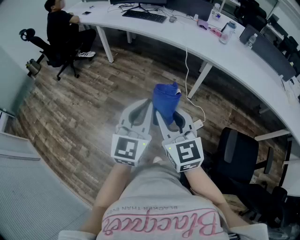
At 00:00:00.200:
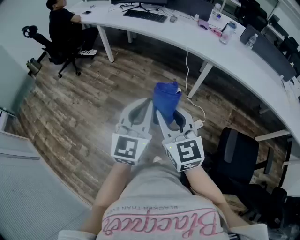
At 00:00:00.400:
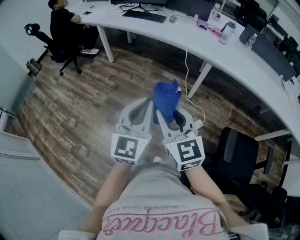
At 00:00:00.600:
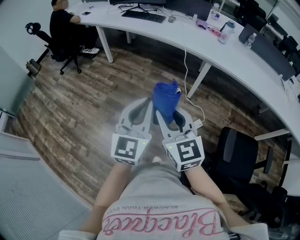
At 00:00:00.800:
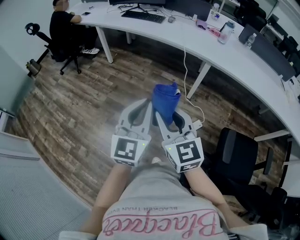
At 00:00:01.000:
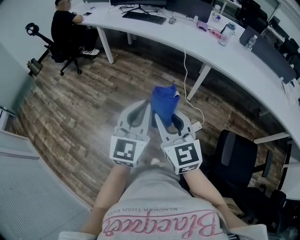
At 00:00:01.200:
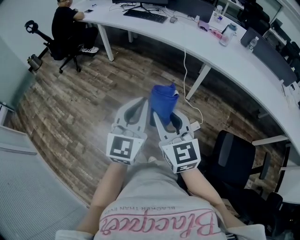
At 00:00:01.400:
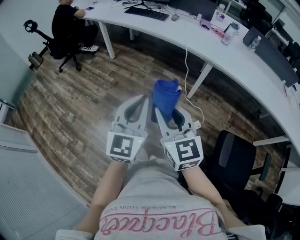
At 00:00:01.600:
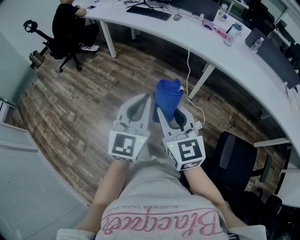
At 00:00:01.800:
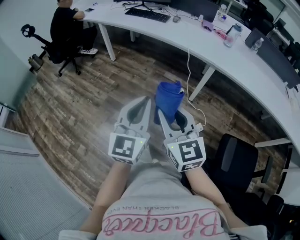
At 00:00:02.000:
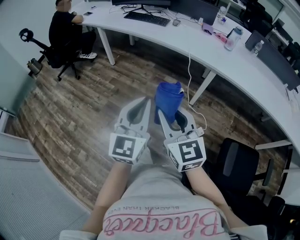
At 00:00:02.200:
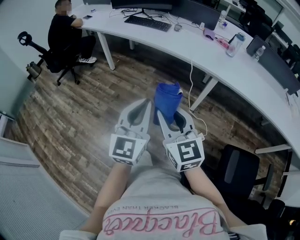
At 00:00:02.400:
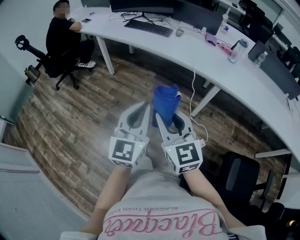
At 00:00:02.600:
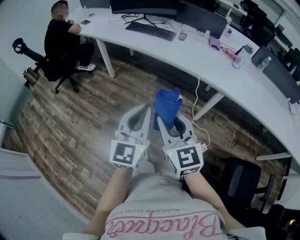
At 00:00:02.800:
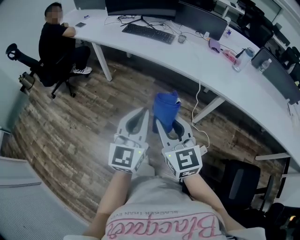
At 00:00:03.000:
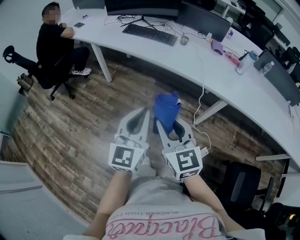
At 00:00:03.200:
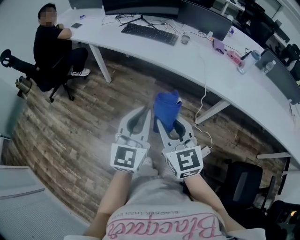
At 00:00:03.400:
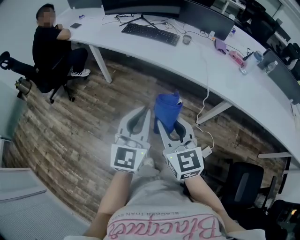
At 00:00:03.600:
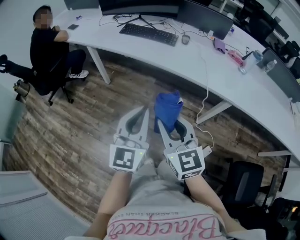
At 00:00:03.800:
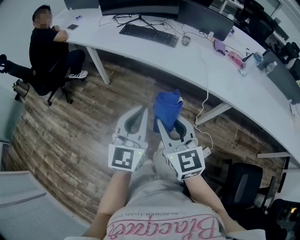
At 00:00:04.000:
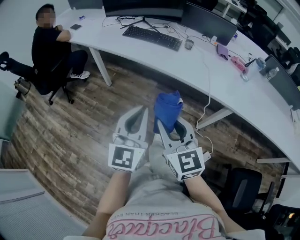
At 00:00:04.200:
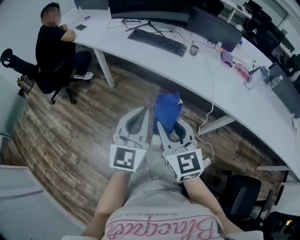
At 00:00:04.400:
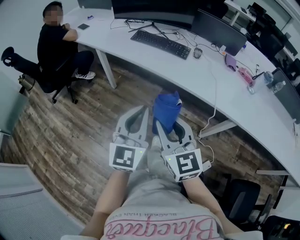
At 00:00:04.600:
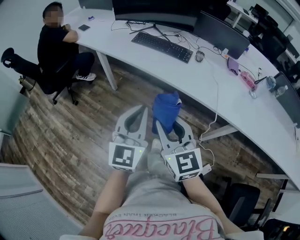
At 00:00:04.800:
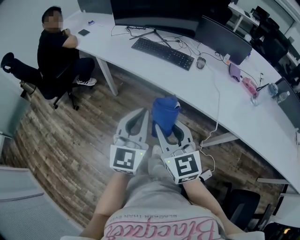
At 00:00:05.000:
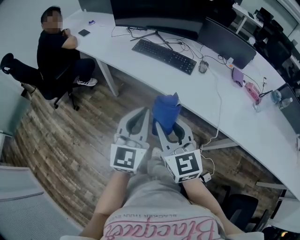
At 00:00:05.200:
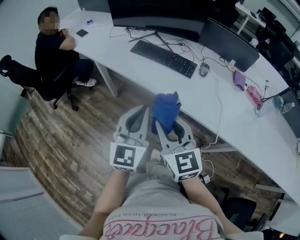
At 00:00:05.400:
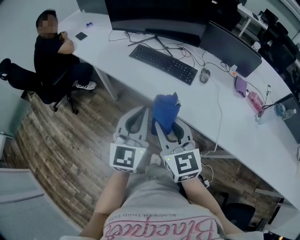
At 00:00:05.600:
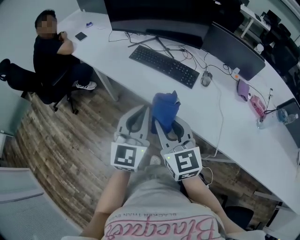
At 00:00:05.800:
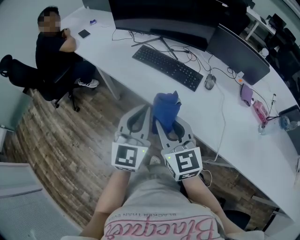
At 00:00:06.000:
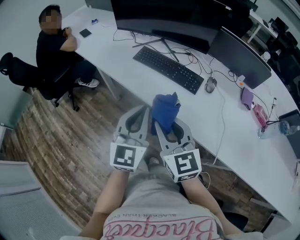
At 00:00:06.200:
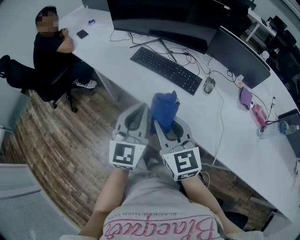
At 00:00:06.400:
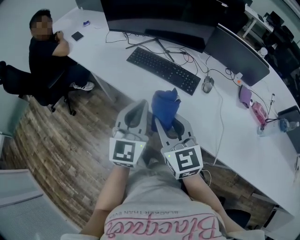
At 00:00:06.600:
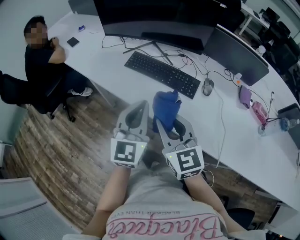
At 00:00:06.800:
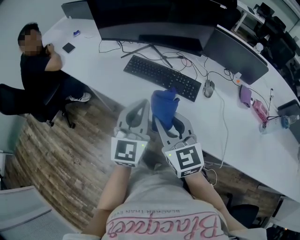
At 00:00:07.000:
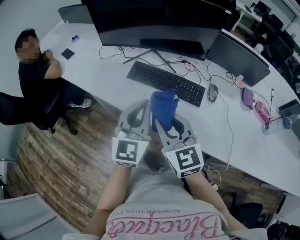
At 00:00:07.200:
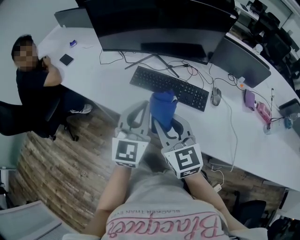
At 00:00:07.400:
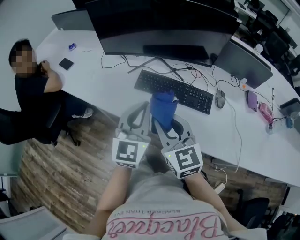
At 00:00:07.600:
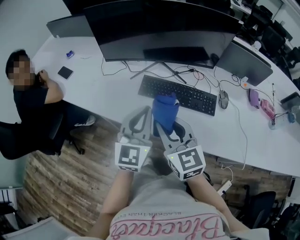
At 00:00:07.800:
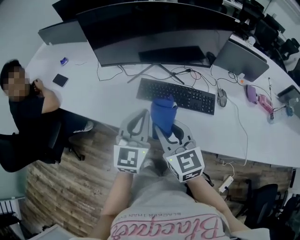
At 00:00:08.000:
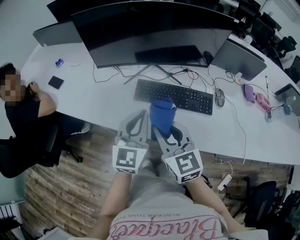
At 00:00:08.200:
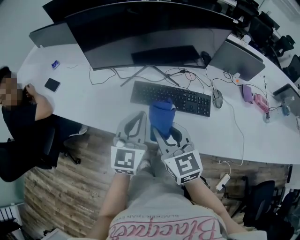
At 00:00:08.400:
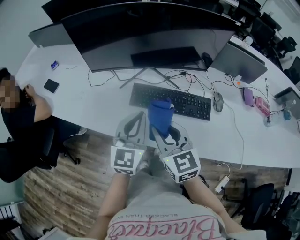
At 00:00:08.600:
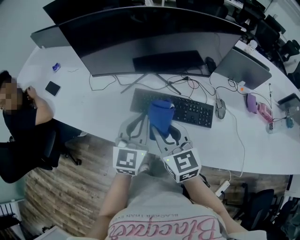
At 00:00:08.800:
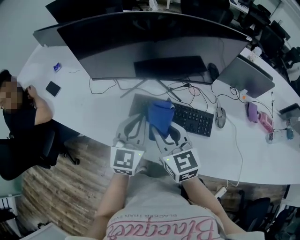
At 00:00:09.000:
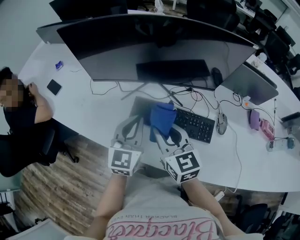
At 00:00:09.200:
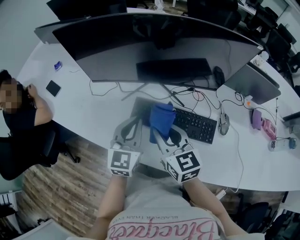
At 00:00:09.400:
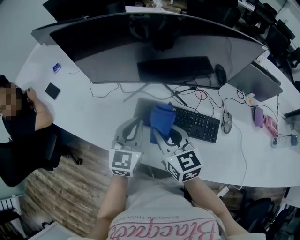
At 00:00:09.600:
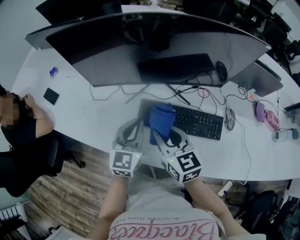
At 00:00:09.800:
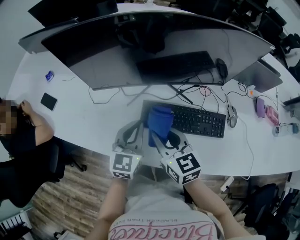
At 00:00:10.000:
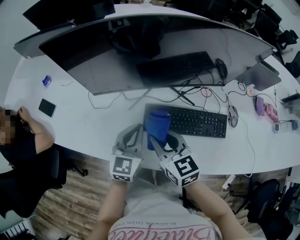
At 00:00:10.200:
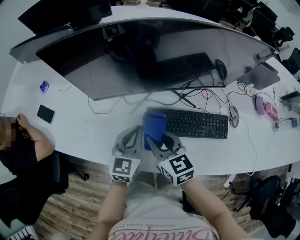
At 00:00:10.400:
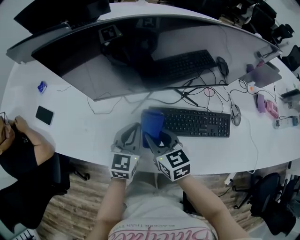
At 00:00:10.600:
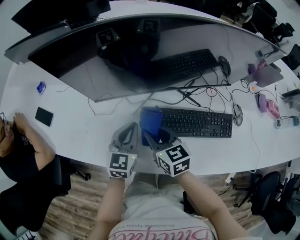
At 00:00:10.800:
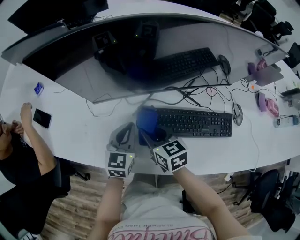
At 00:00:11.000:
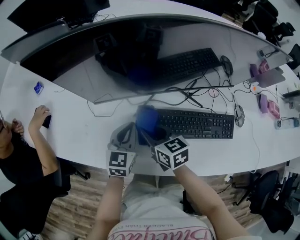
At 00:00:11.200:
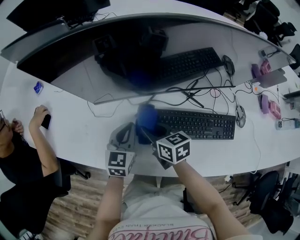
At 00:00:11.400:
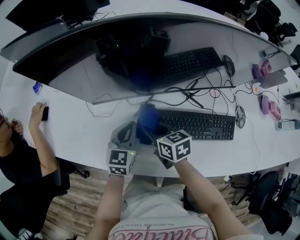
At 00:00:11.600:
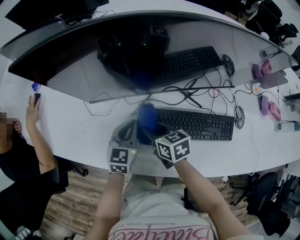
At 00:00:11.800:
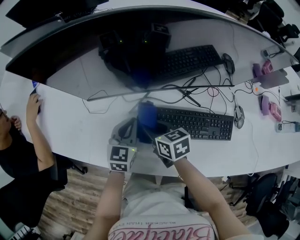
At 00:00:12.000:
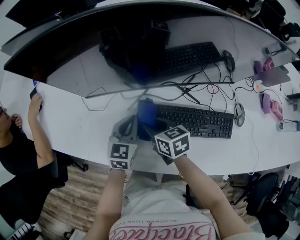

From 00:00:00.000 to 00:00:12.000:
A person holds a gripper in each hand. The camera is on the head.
From 00:00:00.000 to 00:00:01.600: The grippers move only a little.
From 00:00:01.600 to 00:00:03.000: Both grippers travel together forward, roughly 30 cm.
From 00:00:03.000 to 00:00:04.400: Both grippers travel together forward, roughly 15 cm.
From 00:00:04.400 to 00:00:06.000: The grippers both shift forward by approximately 25 cm.
From 00:00:06.000 to 00:00:07.600: Both grippers travel together forward and to the left, some 25 cm.
From 00:00:07.600 to 00:00:09.000: The grippers both shift forward by approximately 15 cm.
From 00:00:09.000 to 00:00:10.400: Both grippers move to the left, downward and forward, approximately 20 cm.
From 00:00:10.400 to 00:00:12.000: The grippers both shift downward by some 5 cm.

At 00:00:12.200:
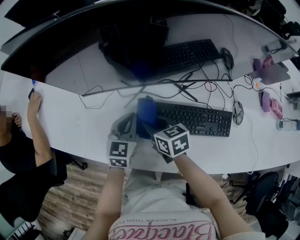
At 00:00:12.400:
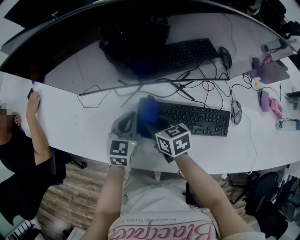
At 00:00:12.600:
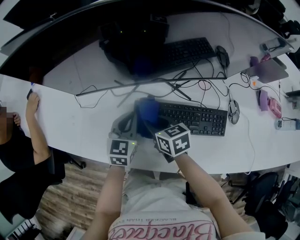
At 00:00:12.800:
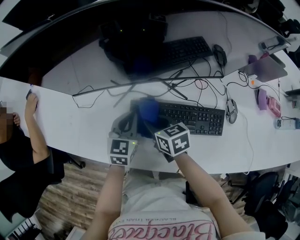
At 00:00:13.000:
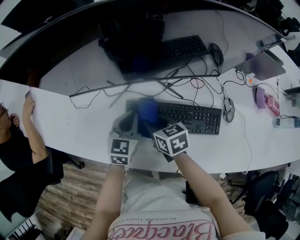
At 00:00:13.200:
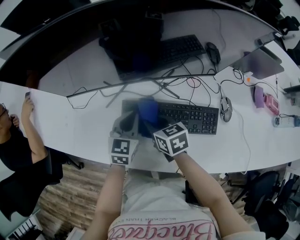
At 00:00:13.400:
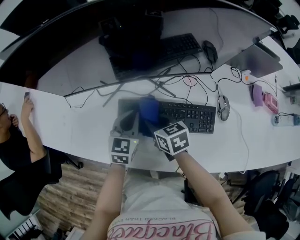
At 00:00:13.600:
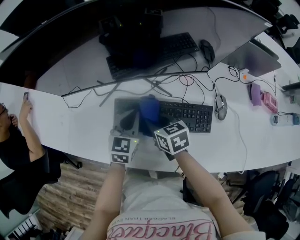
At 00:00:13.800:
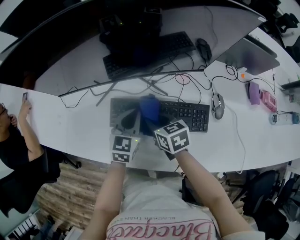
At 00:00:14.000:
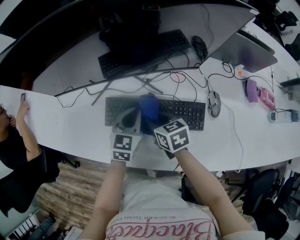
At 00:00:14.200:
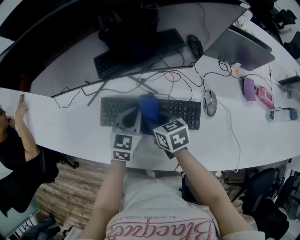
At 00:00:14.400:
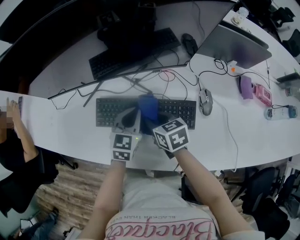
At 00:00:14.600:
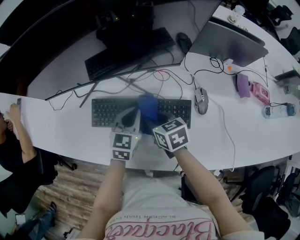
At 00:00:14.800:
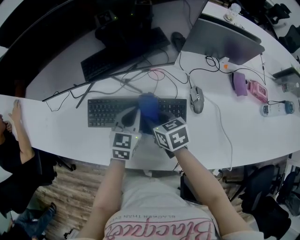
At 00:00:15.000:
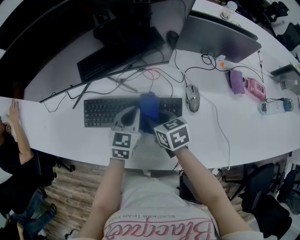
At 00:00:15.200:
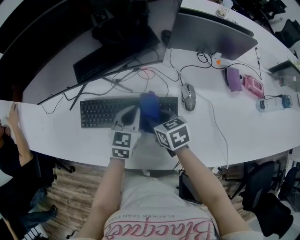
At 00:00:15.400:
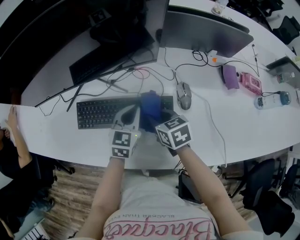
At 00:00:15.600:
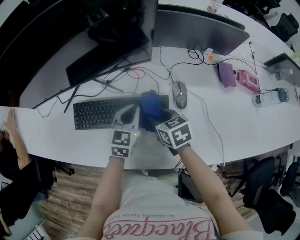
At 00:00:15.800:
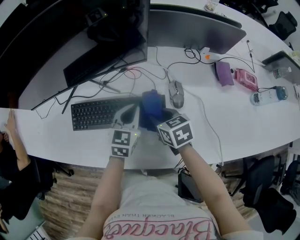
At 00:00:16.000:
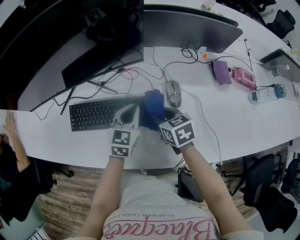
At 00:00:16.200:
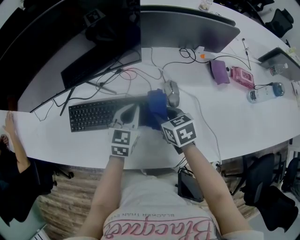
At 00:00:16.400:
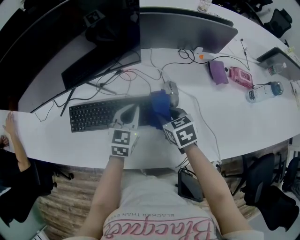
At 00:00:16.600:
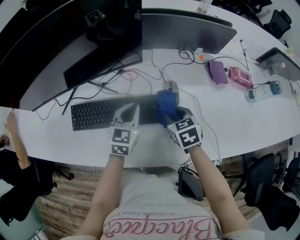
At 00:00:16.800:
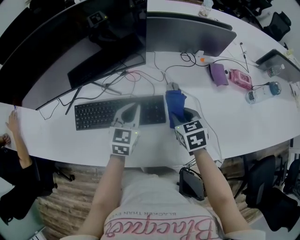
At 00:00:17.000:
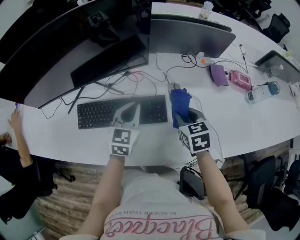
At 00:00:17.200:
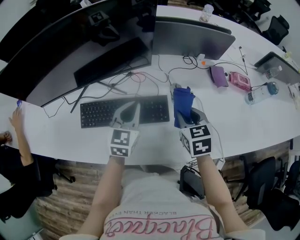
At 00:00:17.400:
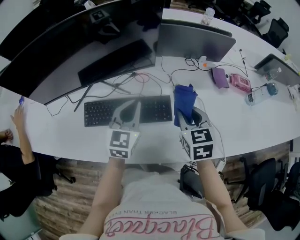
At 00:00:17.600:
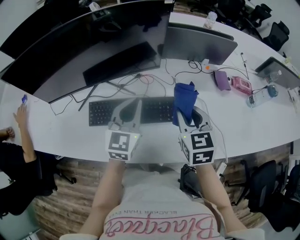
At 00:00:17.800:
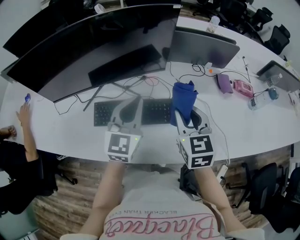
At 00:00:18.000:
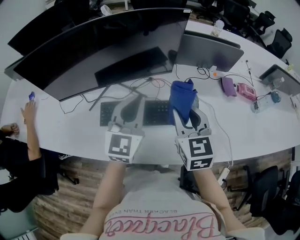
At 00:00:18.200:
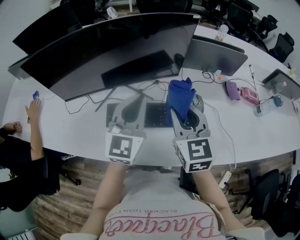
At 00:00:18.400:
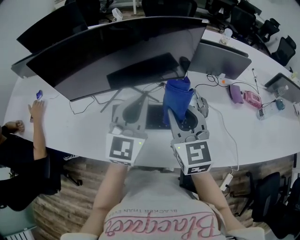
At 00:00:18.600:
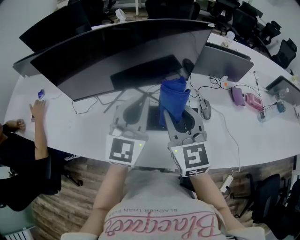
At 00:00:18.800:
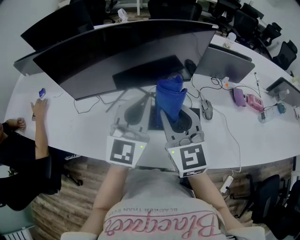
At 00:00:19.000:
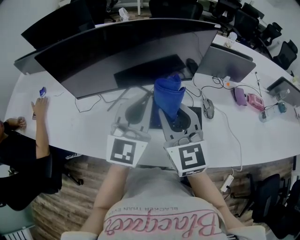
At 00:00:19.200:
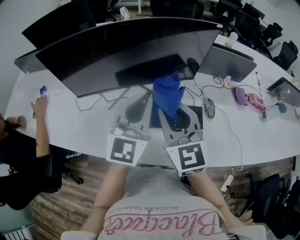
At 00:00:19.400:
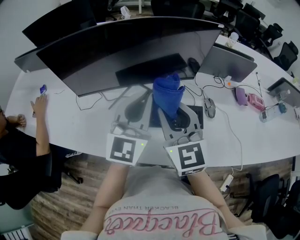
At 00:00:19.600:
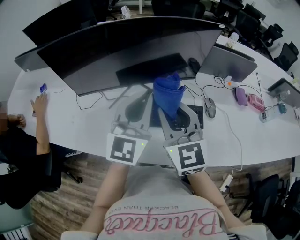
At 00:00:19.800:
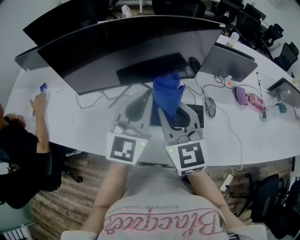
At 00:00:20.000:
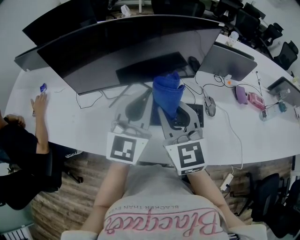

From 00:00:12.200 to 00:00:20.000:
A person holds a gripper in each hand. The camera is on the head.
From 00:00:12.200 to 00:00:13.800: Both grippers move to the right, roughly 15 cm.
From 00:00:13.800 to 00:00:15.400: Both grippers travel together to the right, some 20 cm.
From 00:00:15.400 to 00:00:16.800: The right gripper heads to the right, covering approximately 15 cm, and changes its angle by about 20 degrees. Meanwhile the left gripper changes place by approximately 5 cm.
From 00:00:16.800 to 00:00:18.400: The two grippers go roughly 30 cm upward and to the left. The right gripper tilts its fingers approximately 40 degrees upward, while the left gripper changes its angle by roughly 30 degrees.
From 00:00:18.400 to 00:00:20.000: The right gripper travels to the left by approximately 10 cm. The left gripper moves approximately 5 cm.

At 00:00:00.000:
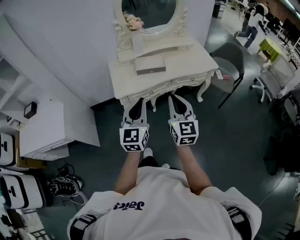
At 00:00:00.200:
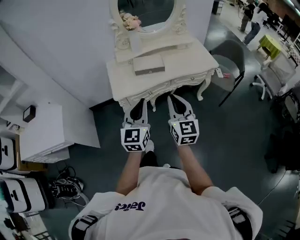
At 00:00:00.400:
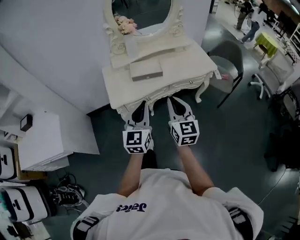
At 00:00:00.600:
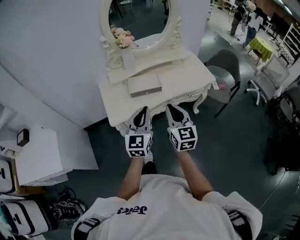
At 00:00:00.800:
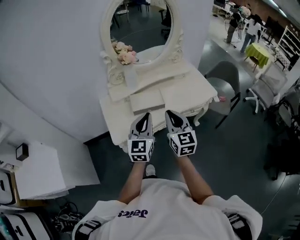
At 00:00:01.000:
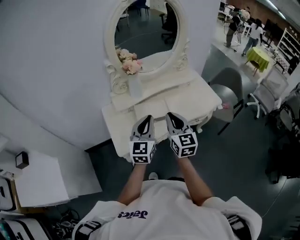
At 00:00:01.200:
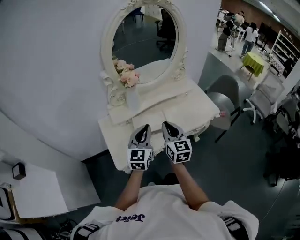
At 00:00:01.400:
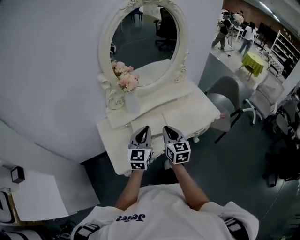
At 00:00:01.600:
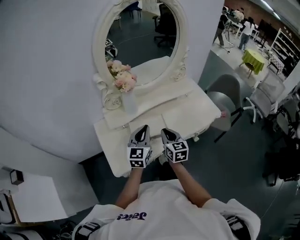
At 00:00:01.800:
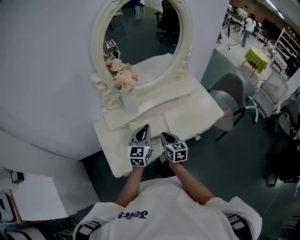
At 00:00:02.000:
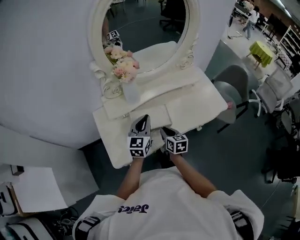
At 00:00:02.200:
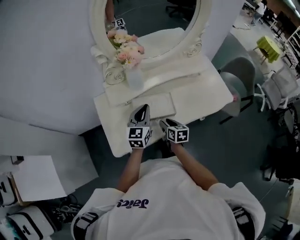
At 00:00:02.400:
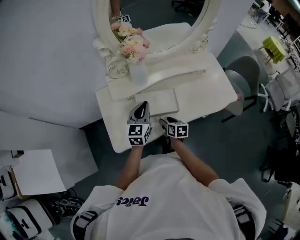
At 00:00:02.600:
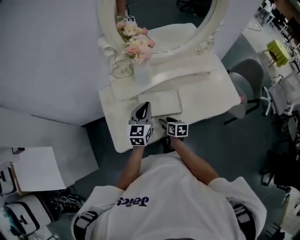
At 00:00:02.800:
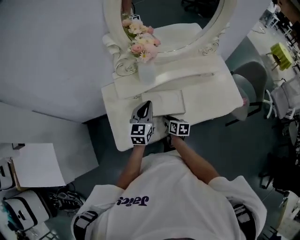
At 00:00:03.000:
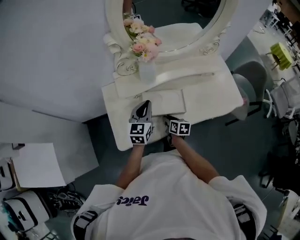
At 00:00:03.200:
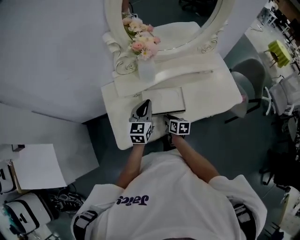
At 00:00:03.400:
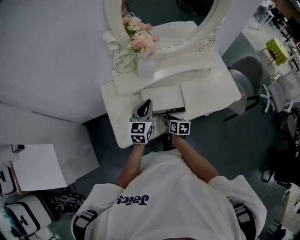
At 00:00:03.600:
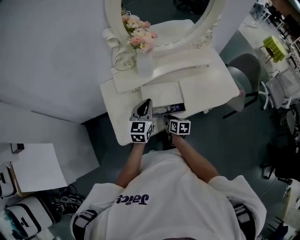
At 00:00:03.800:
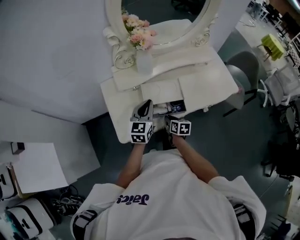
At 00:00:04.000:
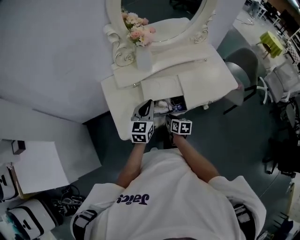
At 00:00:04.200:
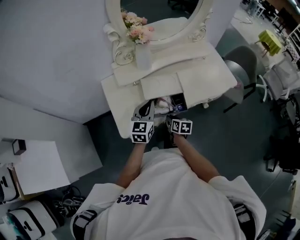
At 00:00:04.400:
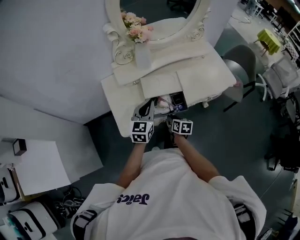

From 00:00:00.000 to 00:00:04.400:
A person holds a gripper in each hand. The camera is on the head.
From 00:00:00.000 to 00:00:01.400: The grippers both shift forward by some 40 cm.
From 00:00:01.400 to 00:00:03.000: The right gripper travels downward by approximately 30 cm, swivels approximately 40 degrees, and opens and closes again, while the left gripper shifts roughly 15 cm downward, forward and to the left.
From 00:00:03.000 to 00:00:04.400: The grippers both shift backward by about 10 cm.
